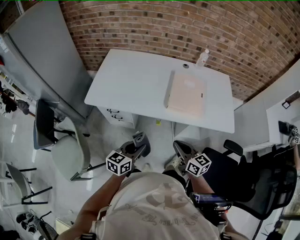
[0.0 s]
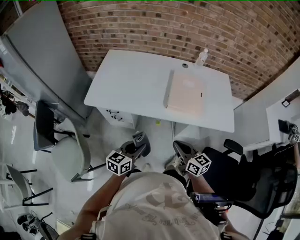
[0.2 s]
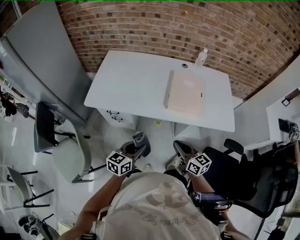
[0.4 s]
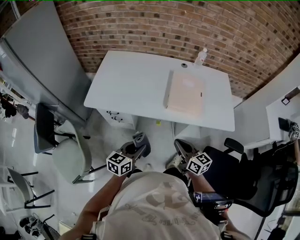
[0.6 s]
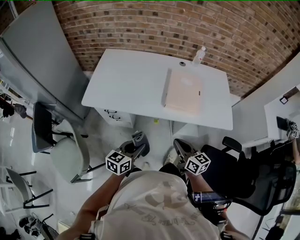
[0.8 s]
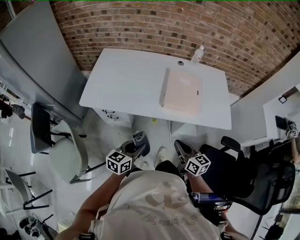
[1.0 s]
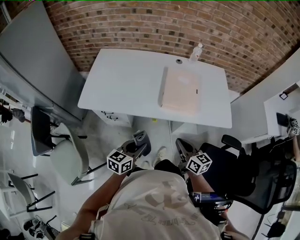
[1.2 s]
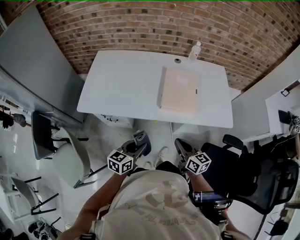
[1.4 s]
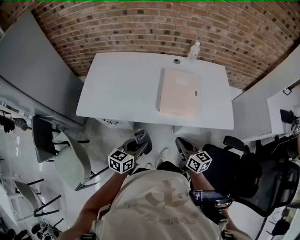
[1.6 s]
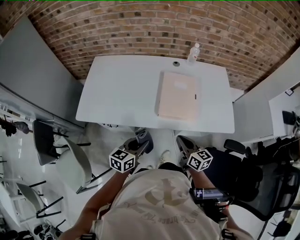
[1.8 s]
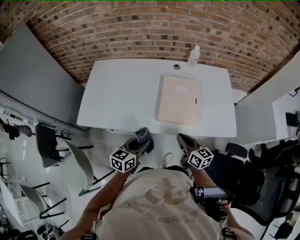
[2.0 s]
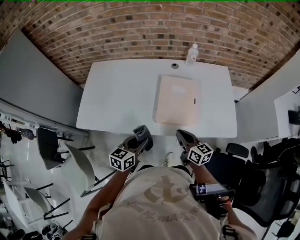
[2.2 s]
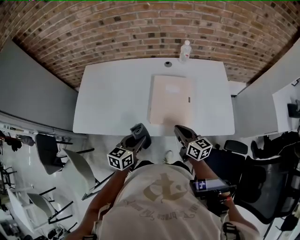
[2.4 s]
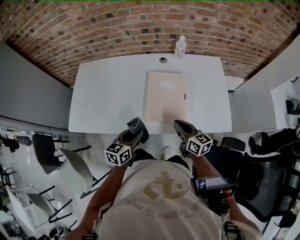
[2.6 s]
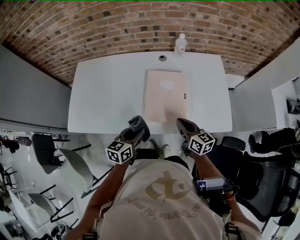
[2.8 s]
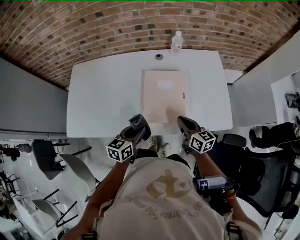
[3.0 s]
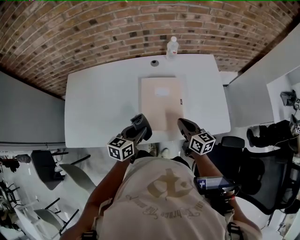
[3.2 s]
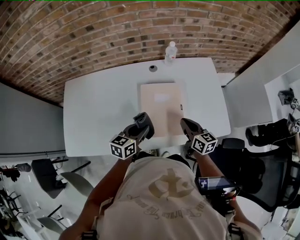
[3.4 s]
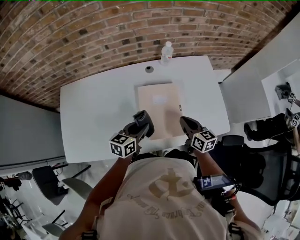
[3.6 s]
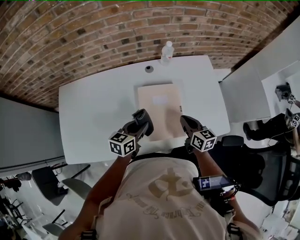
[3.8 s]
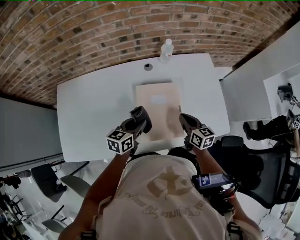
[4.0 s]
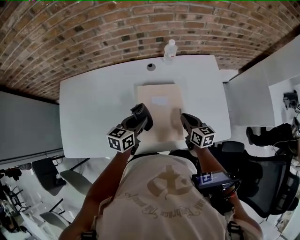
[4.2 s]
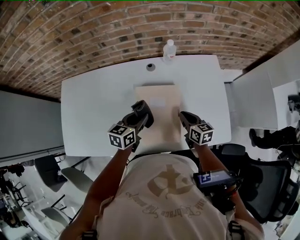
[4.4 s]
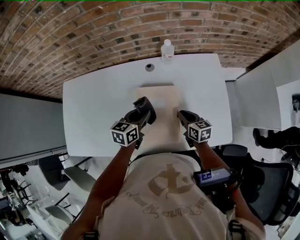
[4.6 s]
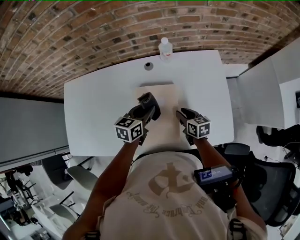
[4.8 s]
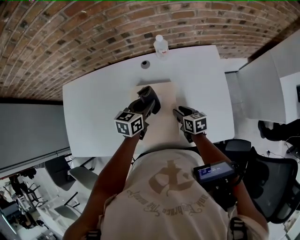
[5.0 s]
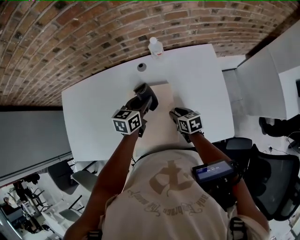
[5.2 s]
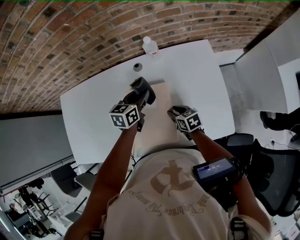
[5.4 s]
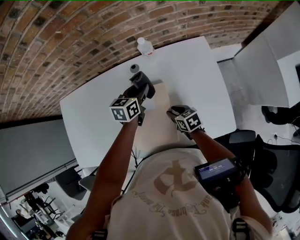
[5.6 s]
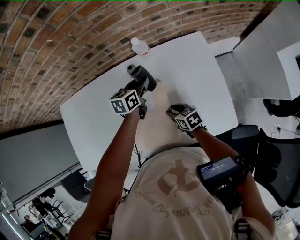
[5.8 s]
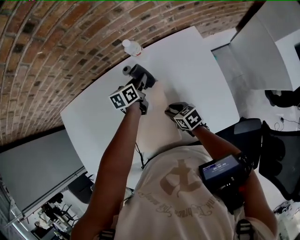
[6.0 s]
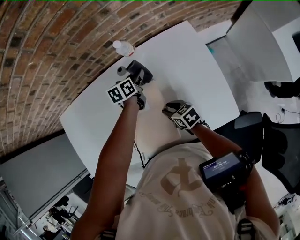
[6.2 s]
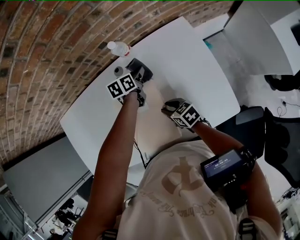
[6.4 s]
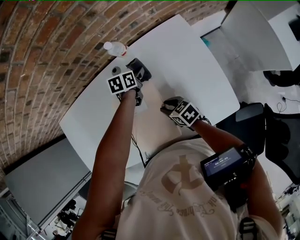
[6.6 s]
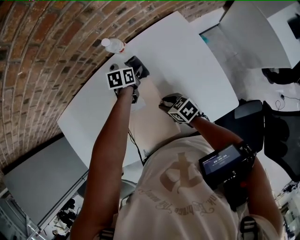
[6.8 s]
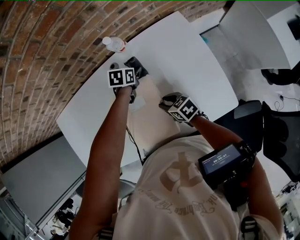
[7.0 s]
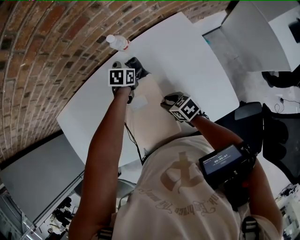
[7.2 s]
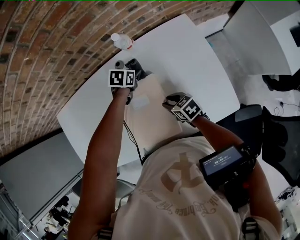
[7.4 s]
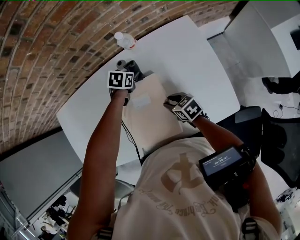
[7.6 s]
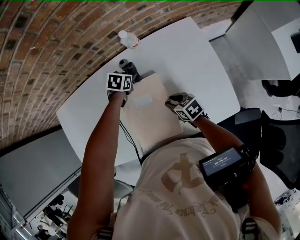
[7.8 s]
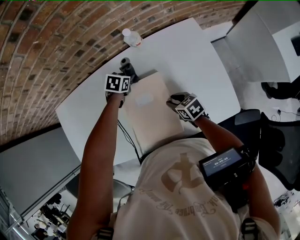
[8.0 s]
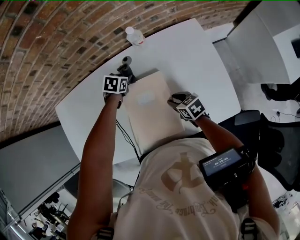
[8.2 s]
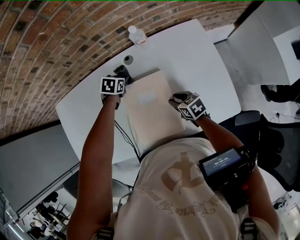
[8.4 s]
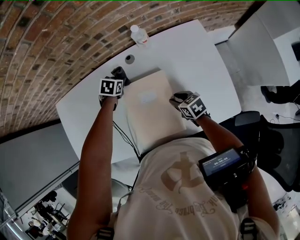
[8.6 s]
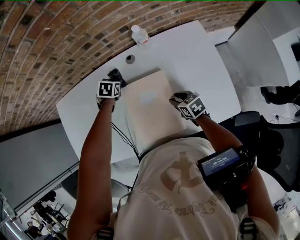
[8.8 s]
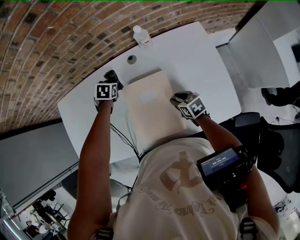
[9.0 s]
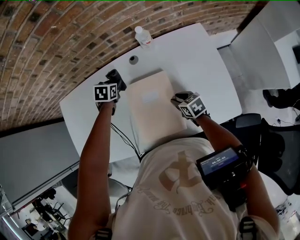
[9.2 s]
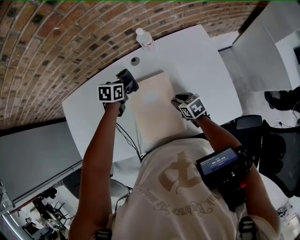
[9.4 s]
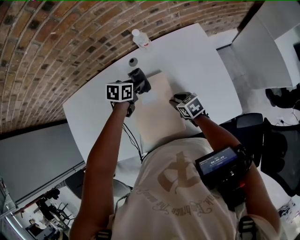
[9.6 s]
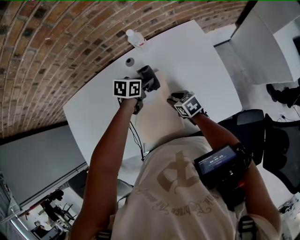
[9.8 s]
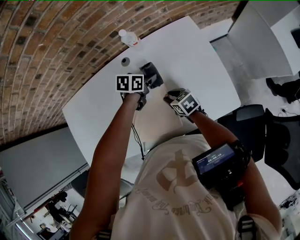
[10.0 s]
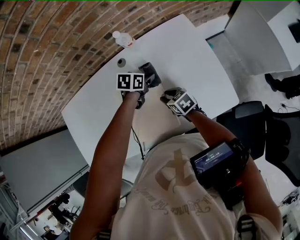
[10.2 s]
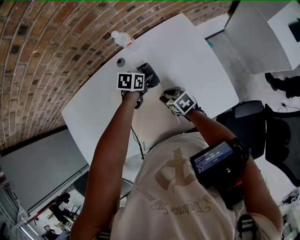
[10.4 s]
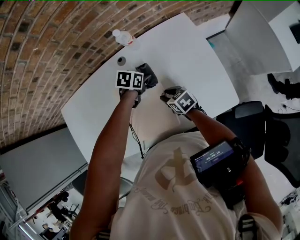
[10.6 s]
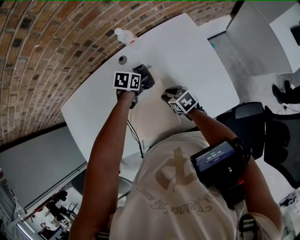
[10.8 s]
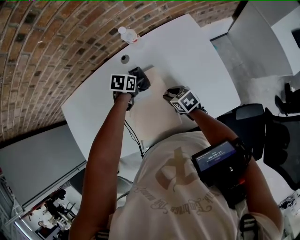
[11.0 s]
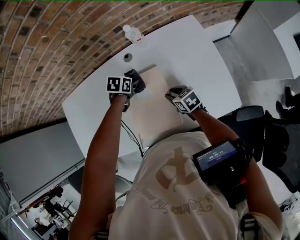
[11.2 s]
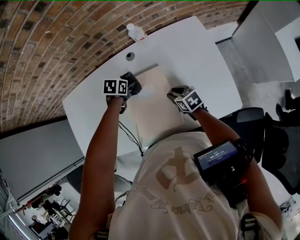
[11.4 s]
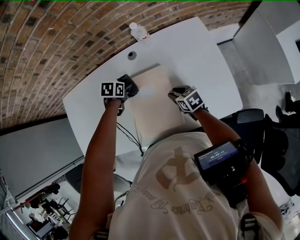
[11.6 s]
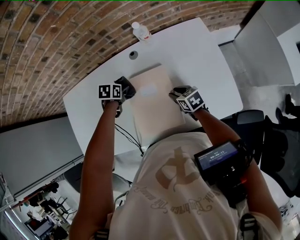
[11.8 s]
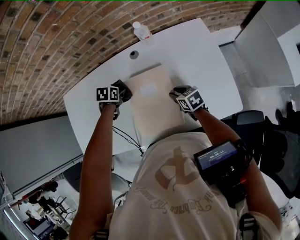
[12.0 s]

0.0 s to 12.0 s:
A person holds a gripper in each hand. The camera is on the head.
0.0 to 1.6 s: The right gripper is displaced forward and to the right by some 10 cm. Meanwhile the left gripper shifts approximately 10 cm forward.
1.6 to 3.0 s: The right gripper shifts some 20 cm forward and to the right. Meanwhile the left gripper moves forward, roughly 20 cm.
3.0 to 4.4 s: The grippers both shift forward by roughly 15 cm.
4.4 to 6.0 s: The right gripper travels downward by about 5 cm, and opens up. Meanwhile the left gripper travels forward and to the right by about 25 cm.
6.0 to 7.6 s: The left gripper is displaced downward by roughly 5 cm, and changes its angle by about 40 degrees.
7.6 to 9.0 s: The left gripper shifts approximately 20 cm to the left.
9.0 to 10.4 s: The left gripper ends up some 25 cm from where it was, and changes its angle by approximately 30 degrees.
10.4 to 12.0 s: The left gripper shifts by roughly 25 cm, and turns by about 20 degrees.

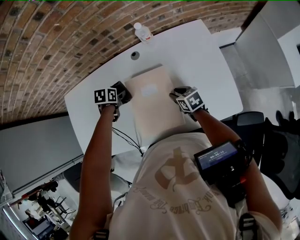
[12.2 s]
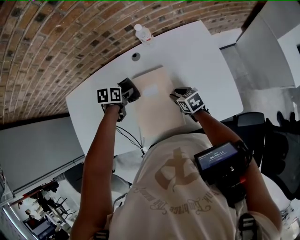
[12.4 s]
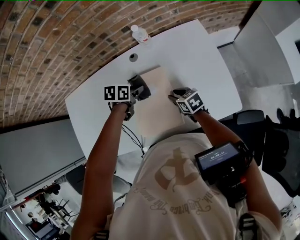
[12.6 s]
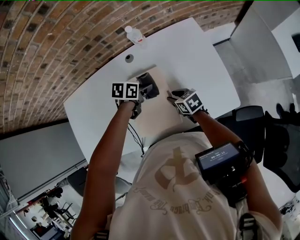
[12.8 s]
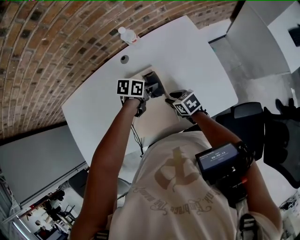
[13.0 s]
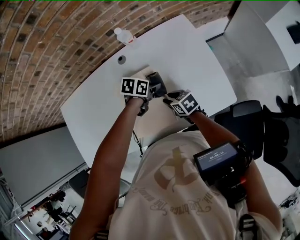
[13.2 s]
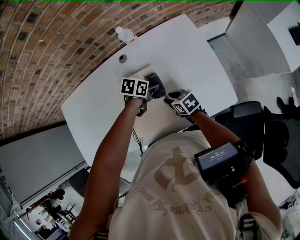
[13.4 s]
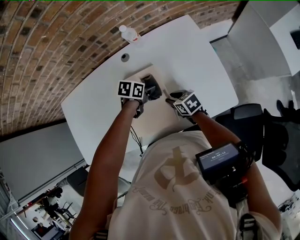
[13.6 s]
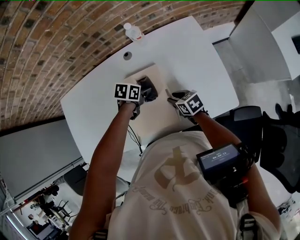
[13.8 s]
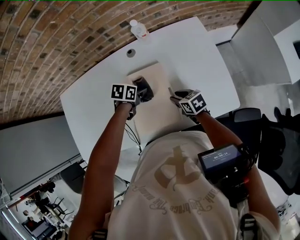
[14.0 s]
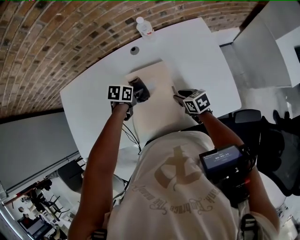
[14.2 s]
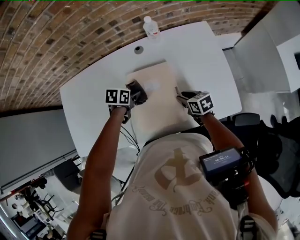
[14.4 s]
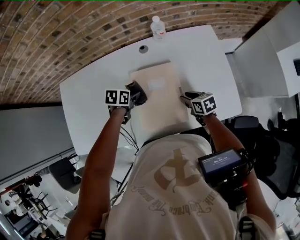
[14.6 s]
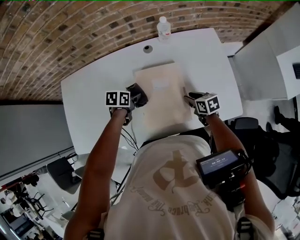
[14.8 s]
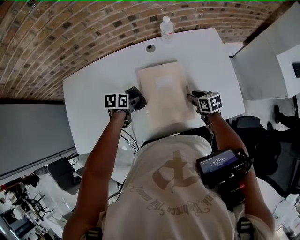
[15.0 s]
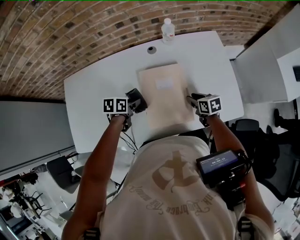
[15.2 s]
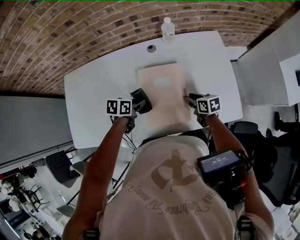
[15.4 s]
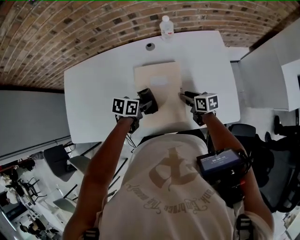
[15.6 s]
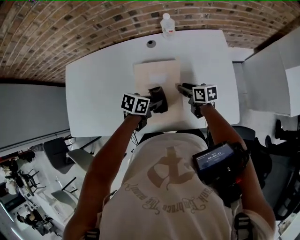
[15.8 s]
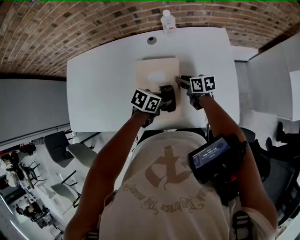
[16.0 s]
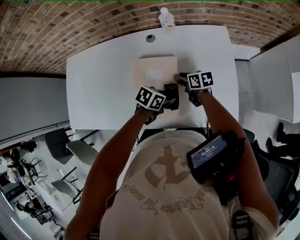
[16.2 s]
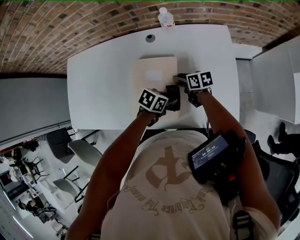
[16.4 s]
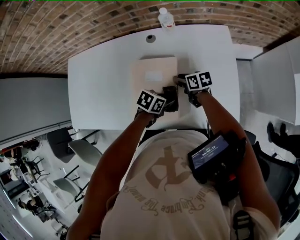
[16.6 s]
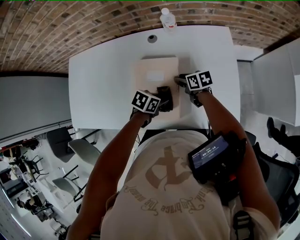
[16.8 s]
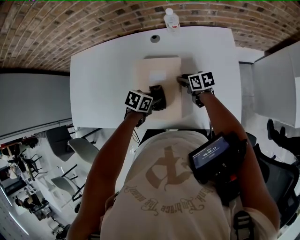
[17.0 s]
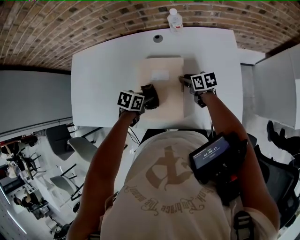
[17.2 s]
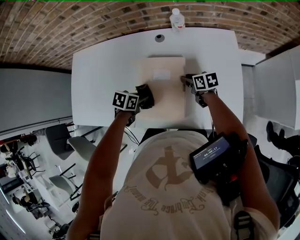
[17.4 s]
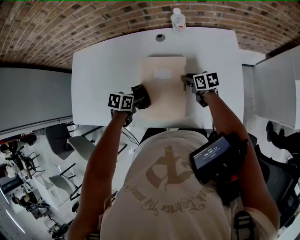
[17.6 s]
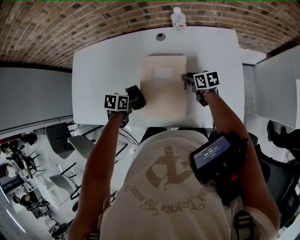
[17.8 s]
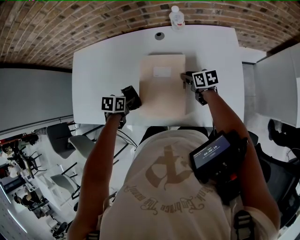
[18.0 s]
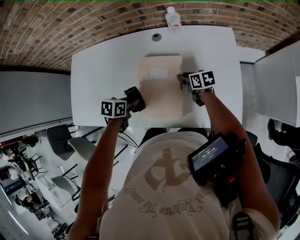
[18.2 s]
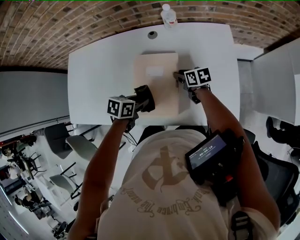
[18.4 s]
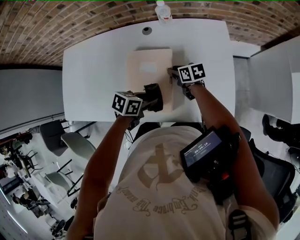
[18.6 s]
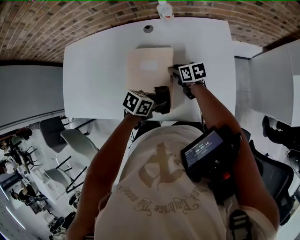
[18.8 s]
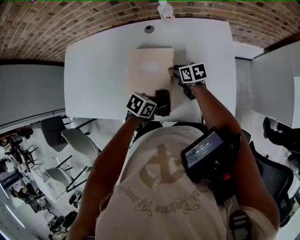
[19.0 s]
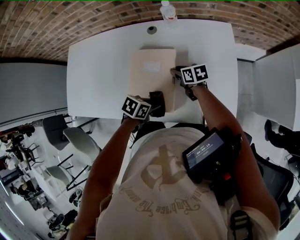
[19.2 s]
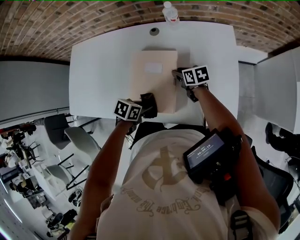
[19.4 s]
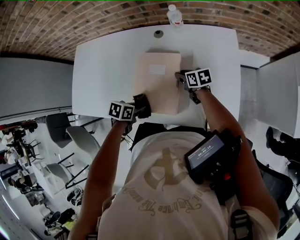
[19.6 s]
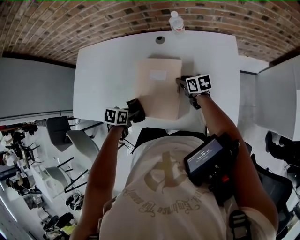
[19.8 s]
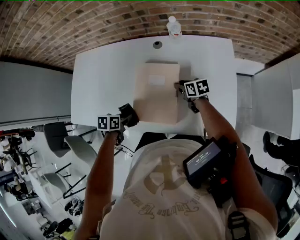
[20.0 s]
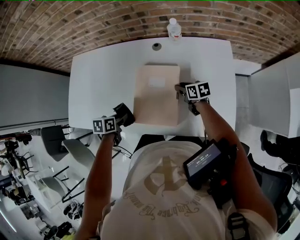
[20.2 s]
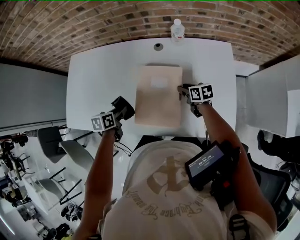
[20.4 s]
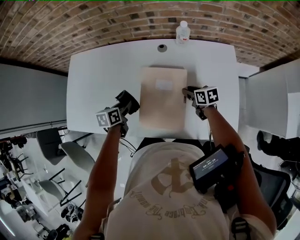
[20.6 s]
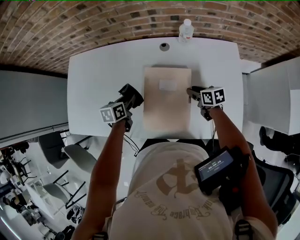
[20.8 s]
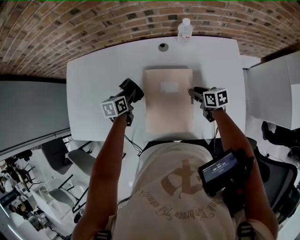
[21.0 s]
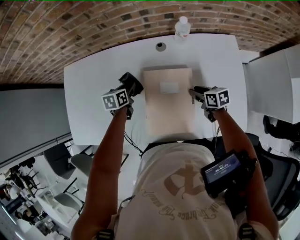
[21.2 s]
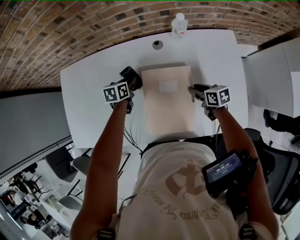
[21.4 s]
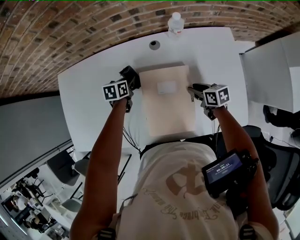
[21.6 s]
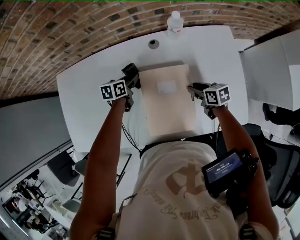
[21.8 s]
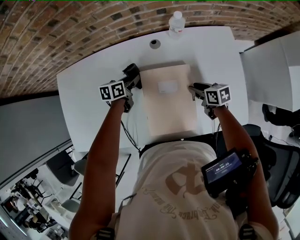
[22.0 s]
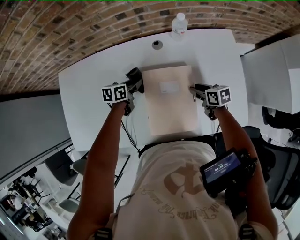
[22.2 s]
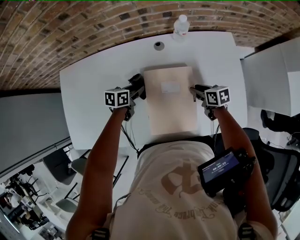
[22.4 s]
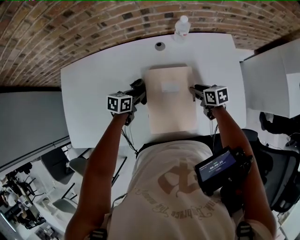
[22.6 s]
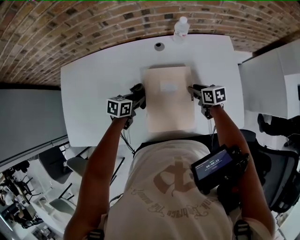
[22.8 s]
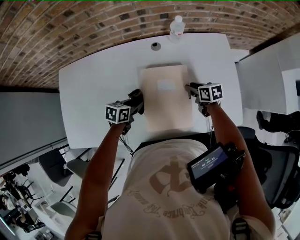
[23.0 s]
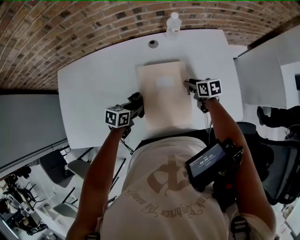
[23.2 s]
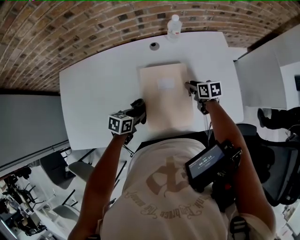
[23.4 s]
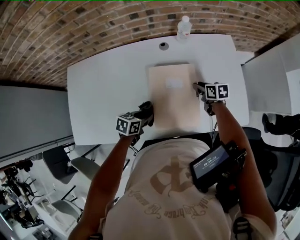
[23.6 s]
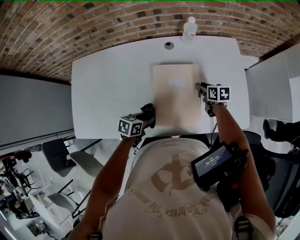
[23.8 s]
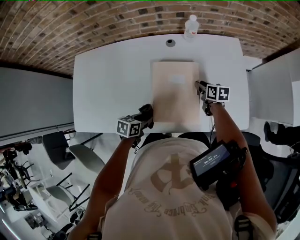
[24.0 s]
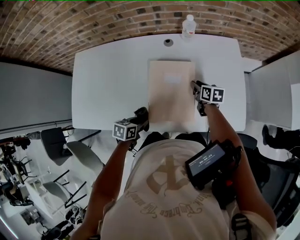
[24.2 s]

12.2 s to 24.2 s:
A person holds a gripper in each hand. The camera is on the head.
12.2 to 13.8 s: The left gripper moves about 20 cm, and rotates approximately 20 degrees.
13.8 to 15.2 s: The left gripper shifts by approximately 20 cm.
15.2 to 16.6 s: The right gripper moves about 10 cm. The left gripper changes place by some 25 cm.
16.6 to 18.2 s: The left gripper shifts by some 20 cm, and rotates some 20 degrees.
19.8 to 21.2 s: The left gripper goes approximately 25 cm forward, and rotates roughly 20 degrees.
21.2 to 22.6 s: The left gripper goes about 5 cm backward, and rotates some 20 degrees.
22.6 to 24.2 s: The left gripper goes approximately 20 cm backward.
